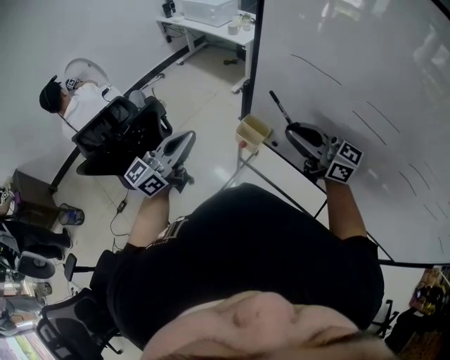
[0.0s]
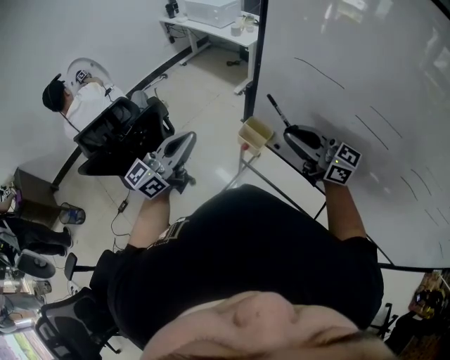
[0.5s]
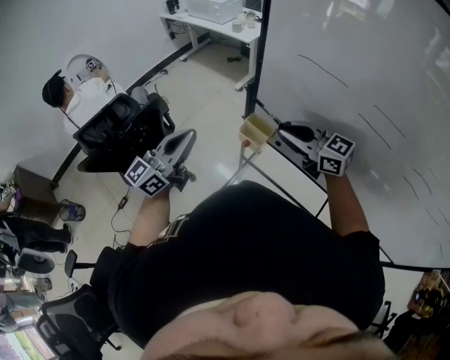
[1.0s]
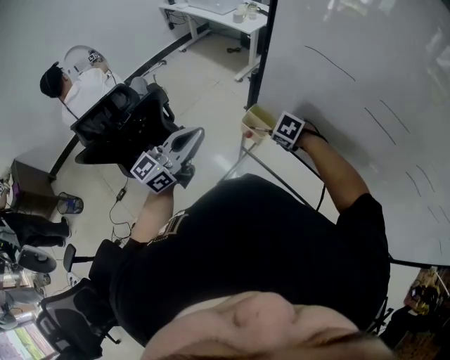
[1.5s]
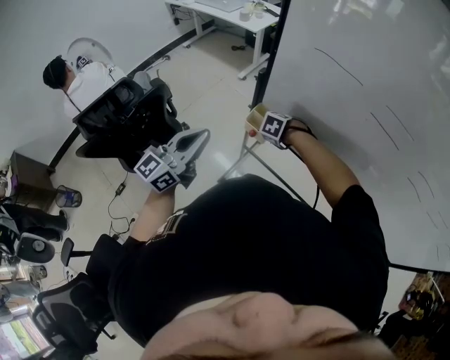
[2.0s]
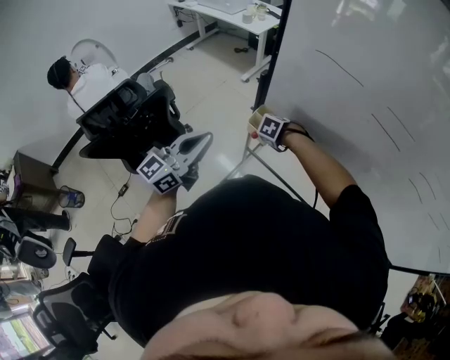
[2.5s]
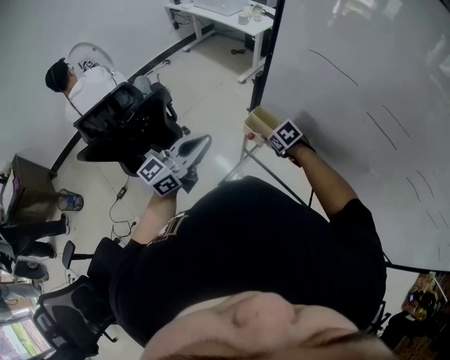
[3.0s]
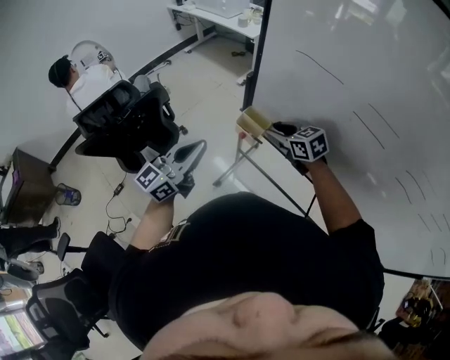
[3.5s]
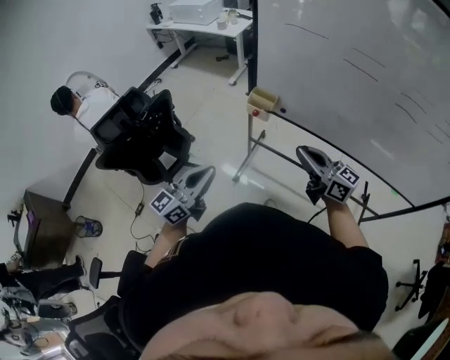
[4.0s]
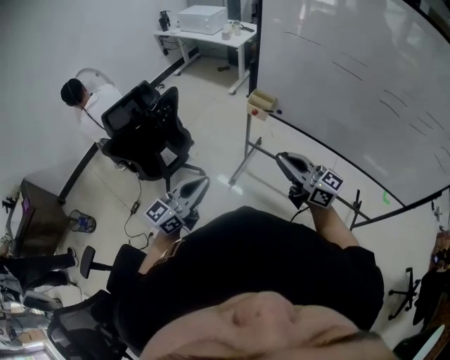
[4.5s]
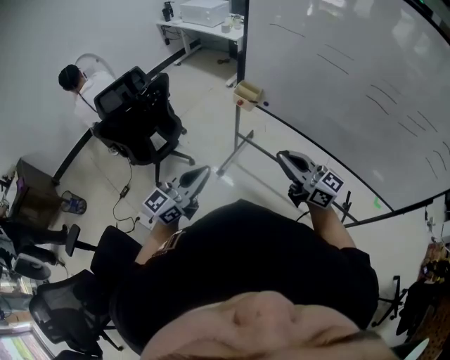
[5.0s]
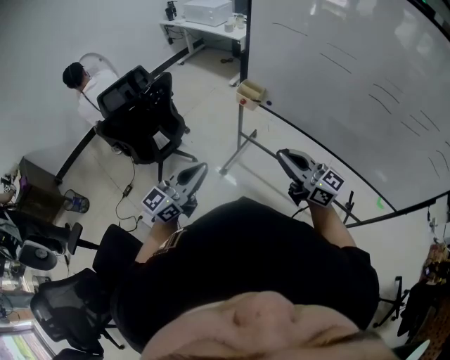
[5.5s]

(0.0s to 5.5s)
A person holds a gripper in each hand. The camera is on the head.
0.0s - 2.0s: The right gripper travels downward by about 30 cm, and points its fingers roughly 90 degrees further downward.
2.0s - 3.5s: The right gripper goes some 15 cm upward, tilts its fingers some 50 degrees upward, and opens.
3.5s - 5.5s: Both grippers move backward, some 35 cm. The right gripper angles its fingers upward, by roughly 40 degrees, and closes up.

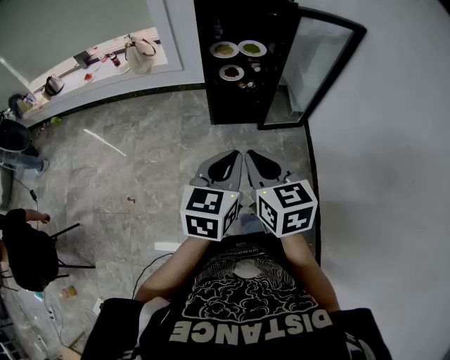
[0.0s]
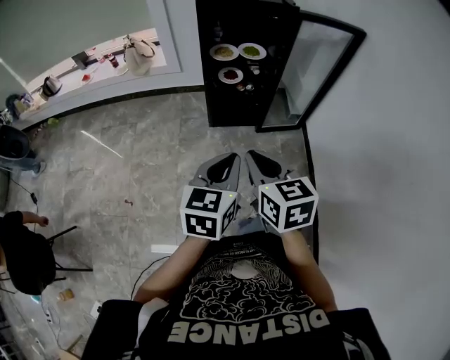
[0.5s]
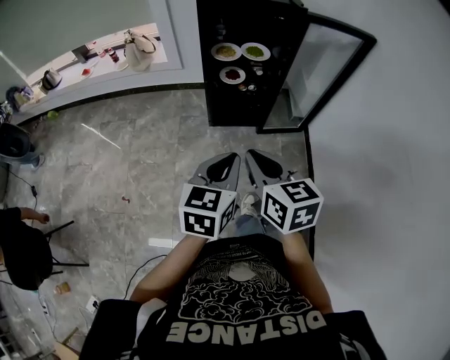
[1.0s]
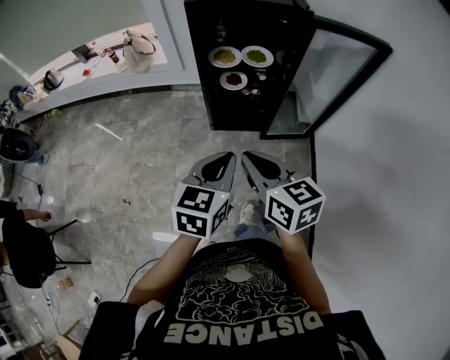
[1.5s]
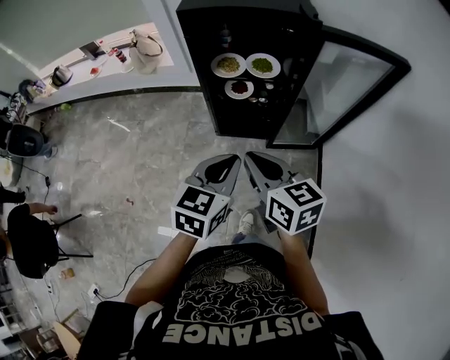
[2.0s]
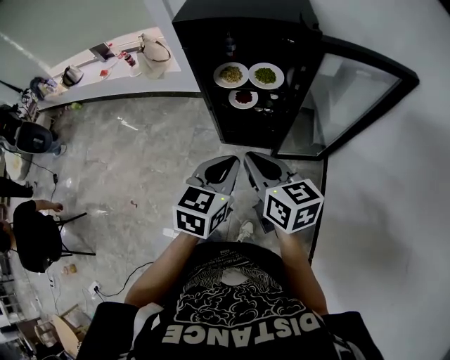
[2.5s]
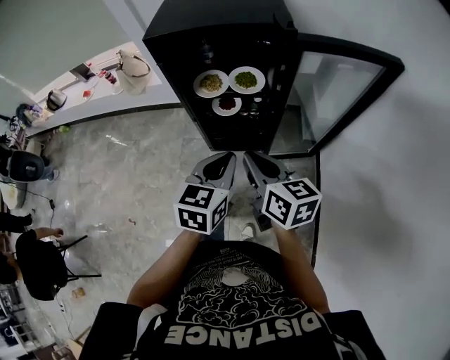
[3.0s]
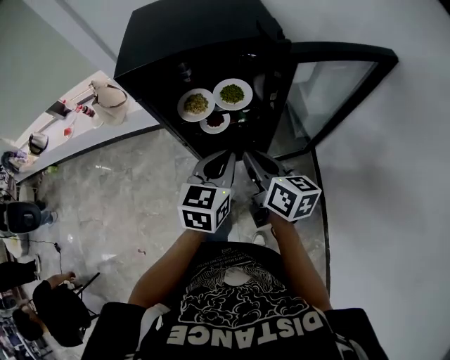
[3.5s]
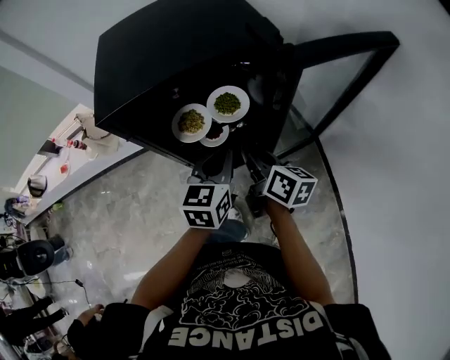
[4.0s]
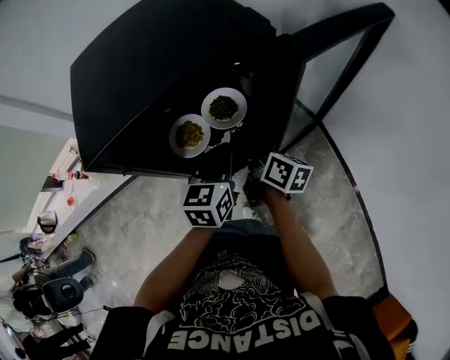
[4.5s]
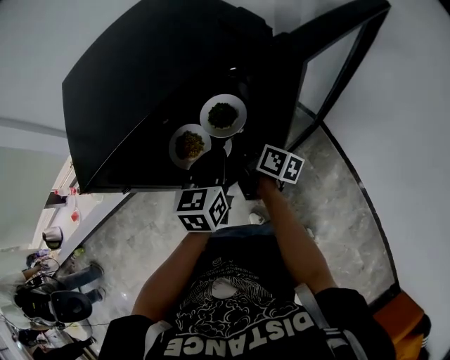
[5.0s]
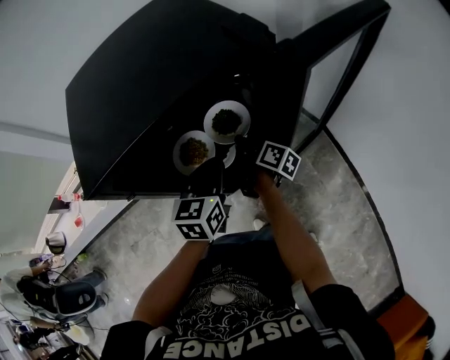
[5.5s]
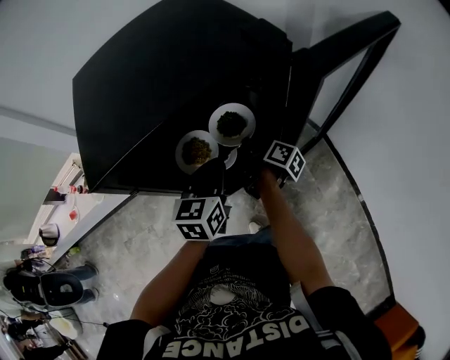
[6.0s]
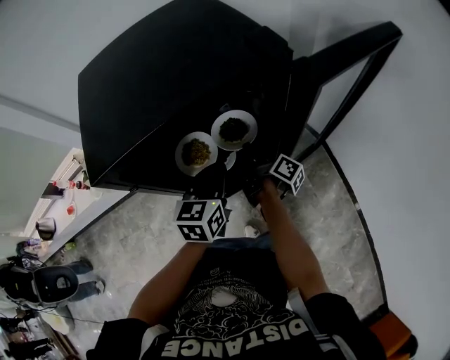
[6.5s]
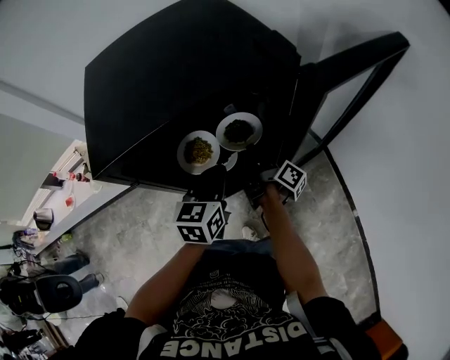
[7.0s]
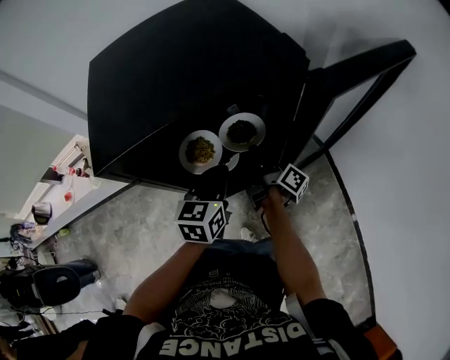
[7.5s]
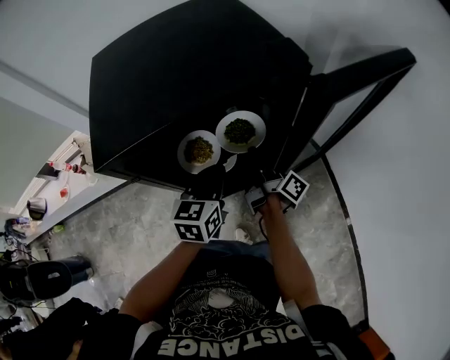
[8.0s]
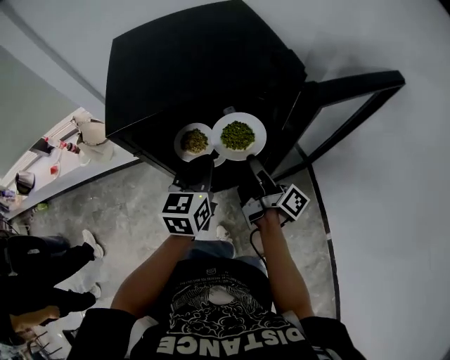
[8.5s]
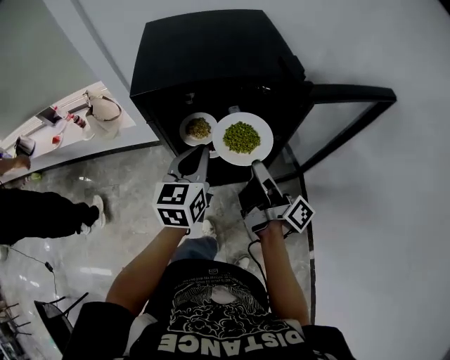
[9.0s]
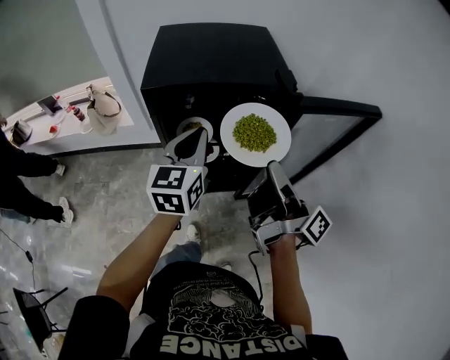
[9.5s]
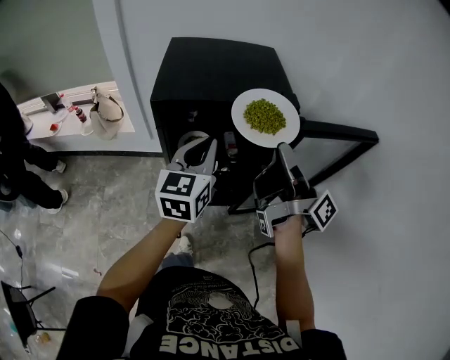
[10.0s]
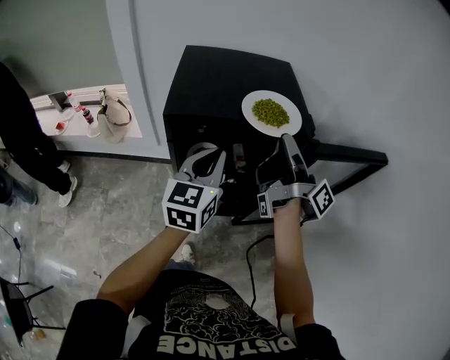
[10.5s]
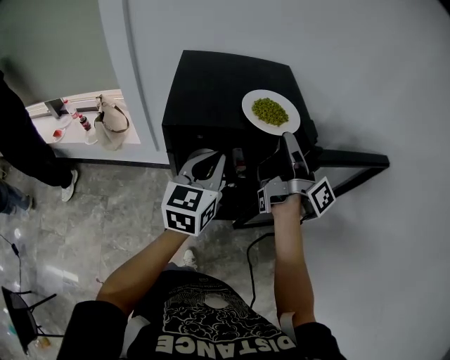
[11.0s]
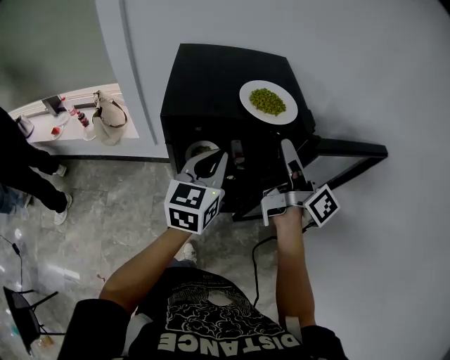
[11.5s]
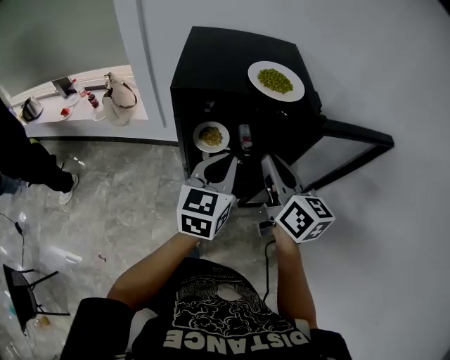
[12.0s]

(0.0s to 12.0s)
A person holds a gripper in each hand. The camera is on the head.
0.0s - 2.0s: The right gripper moves forward, roughly 20 cm, while the left gripper moves forward and to the right, some 25 cm.
2.0s - 4.0s: The right gripper heads forward and downward, covering about 30 cm, and swivels some 40 degrees, while the left gripper heads forward, covering approximately 30 cm.
4.0s - 6.0s: The left gripper moves forward and to the left, approximately 10 cm; the right gripper goes roughly 20 cm downward and forward, and changes its angle by approximately 40 degrees.
6.0s - 8.0s: The right gripper moves upward, some 5 cm, and rotates about 30 degrees.
8.0s - 10.0s: The right gripper goes approximately 35 cm upward and backward, and changes its angle by about 30 degrees. Meanwhile the left gripper shifts roughly 20 cm upward, and swivels some 30 degrees.
10.0s - 12.0s: The left gripper moves roughly 5 cm; the right gripper heads downward and to the left, covering approximately 10 cm, goes forward and returns, some 10 cm each way, and rotates around the line of its fingers by roughly 50 degrees, counterclockwise from behind.

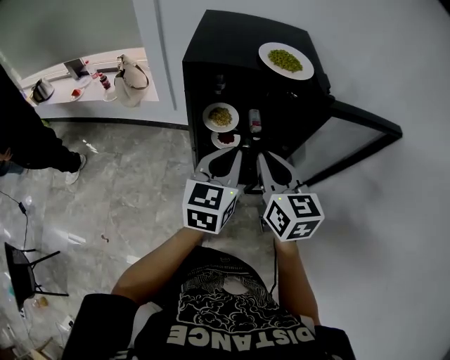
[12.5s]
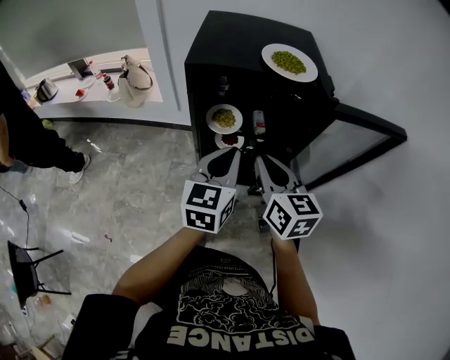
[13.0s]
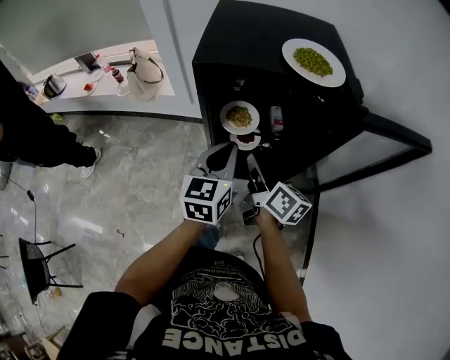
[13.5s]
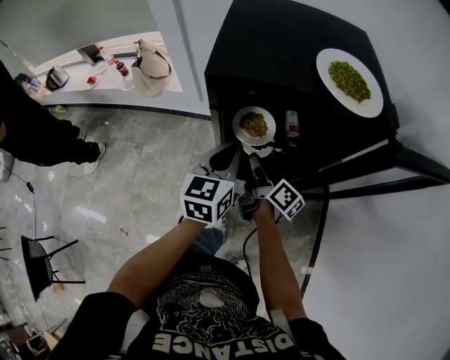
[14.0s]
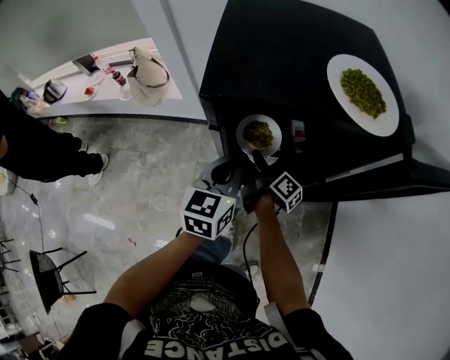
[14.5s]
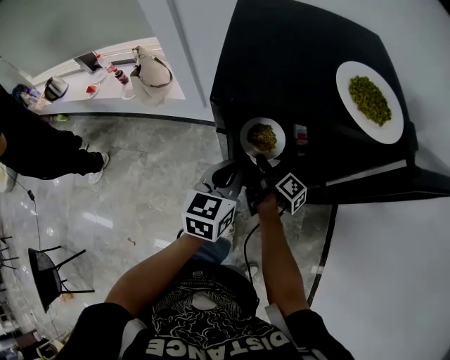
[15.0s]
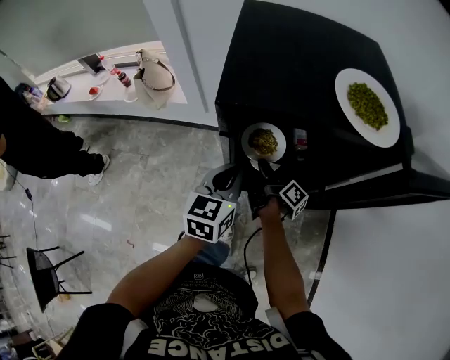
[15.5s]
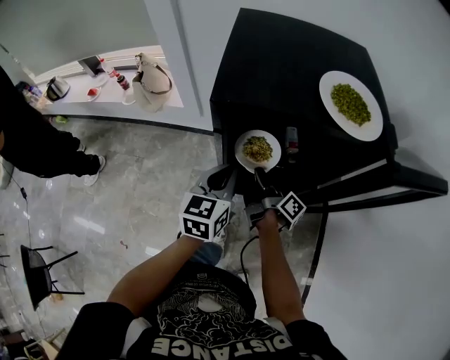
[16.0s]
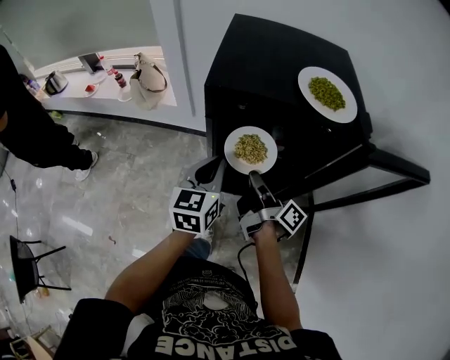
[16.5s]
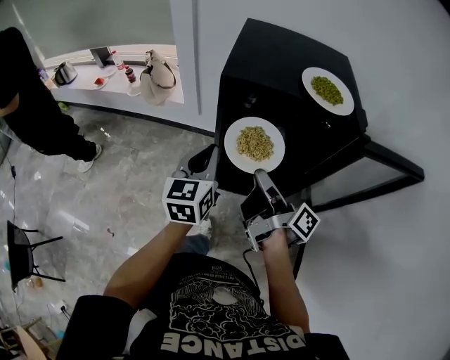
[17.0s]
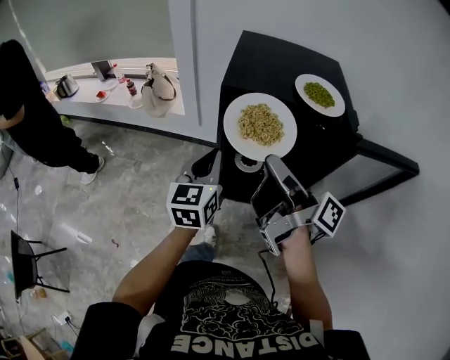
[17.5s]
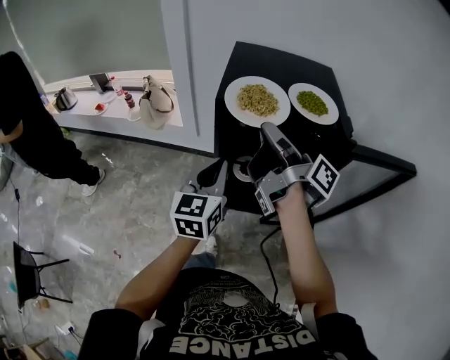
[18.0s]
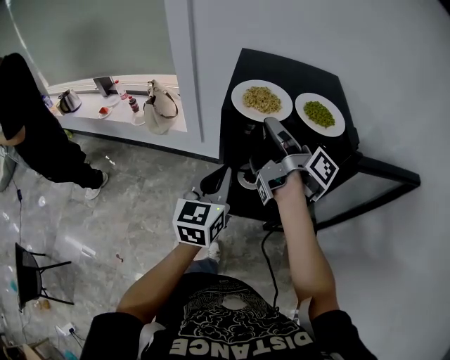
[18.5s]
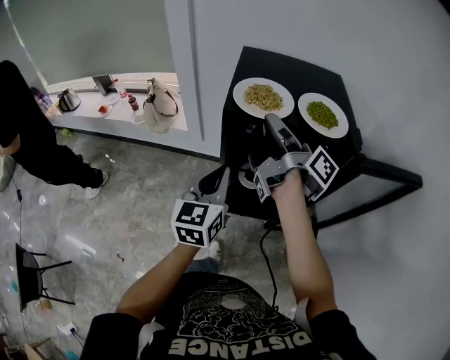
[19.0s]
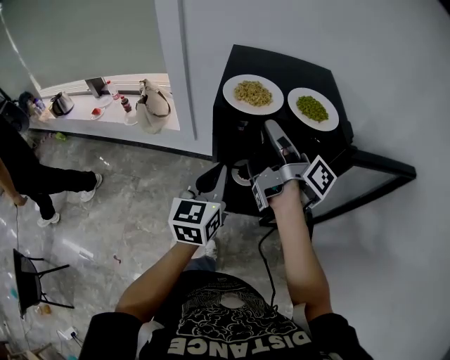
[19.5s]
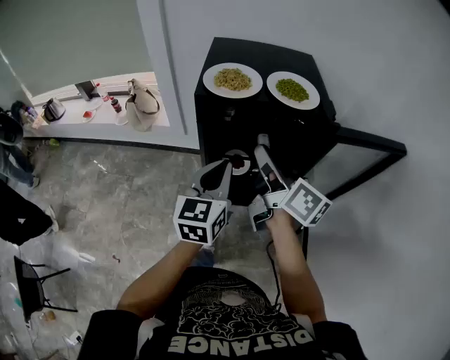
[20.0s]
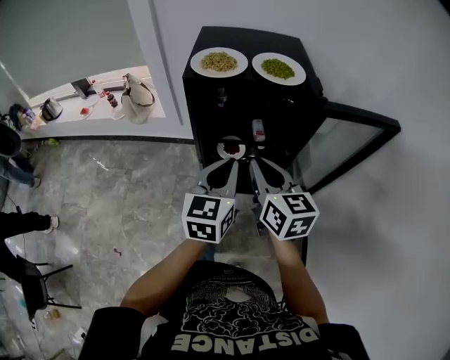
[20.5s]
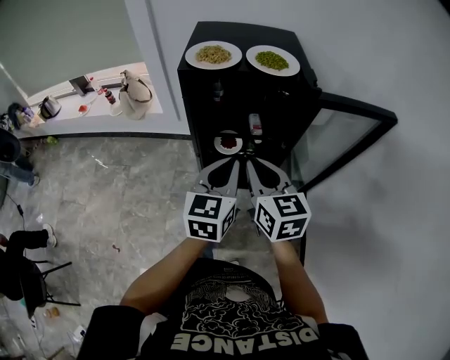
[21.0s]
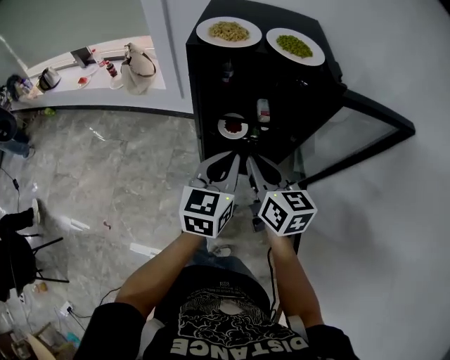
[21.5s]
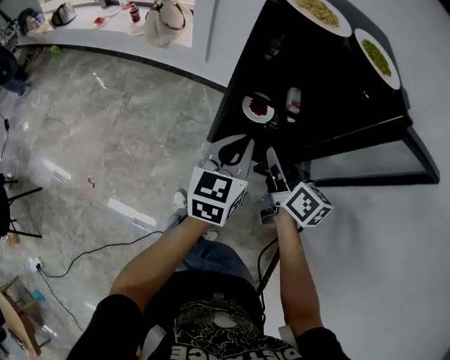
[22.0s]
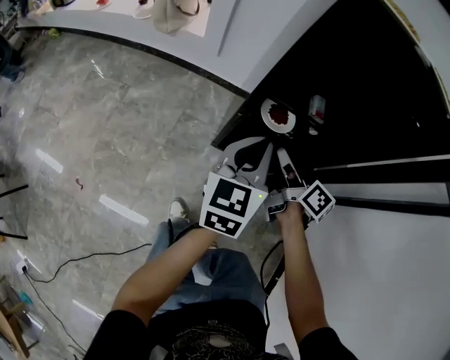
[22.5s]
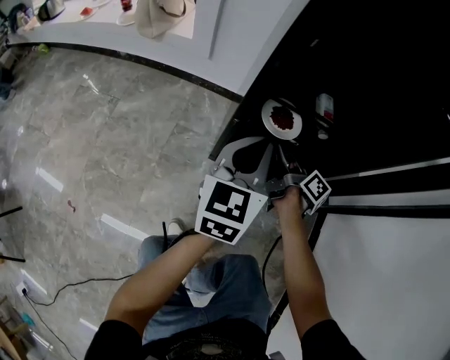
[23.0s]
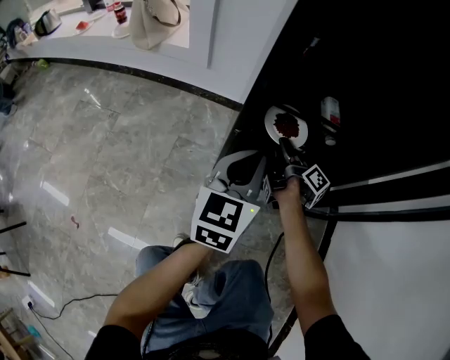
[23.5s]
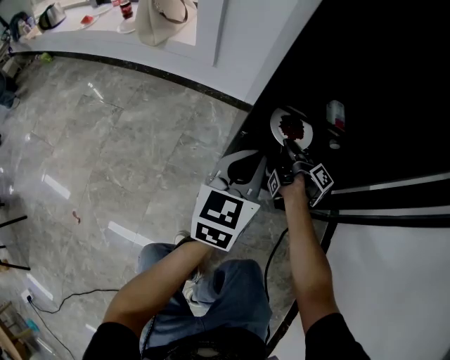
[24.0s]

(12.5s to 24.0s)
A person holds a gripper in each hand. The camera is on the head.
12.5s - 14.5s: The right gripper travels downward and forward by approximately 35 cm, rolls clockwise, seen from behind, by roughly 80 degrees, and opens. Meanwhile the left gripper shifts some 20 cm forward, downward and to the left.
14.5s - 16.5s: The right gripper shifts some 20 cm upward and backward, and closes; the left gripper changes place by some 5 cm.
16.5s - 18.5s: The left gripper moves upward, approximately 10 cm, while the right gripper shifts about 25 cm upward.
18.5s - 20.0s: The right gripper heads backward, covering about 10 cm, and swivels about 40 degrees, while the left gripper is displaced to the right by roughly 5 cm.
20.0s - 22.0s: The right gripper is displaced downward by about 20 cm, and changes its angle by some 20 degrees. Meanwhile the left gripper is displaced downward by approximately 15 cm.
22.0s - 24.0s: The left gripper moves downward and forward, roughly 25 cm. Meanwhile the right gripper goes about 40 cm downward and forward, twists roughly 60 degrees clockwise, seen from behind, and opens, then closes once more.
